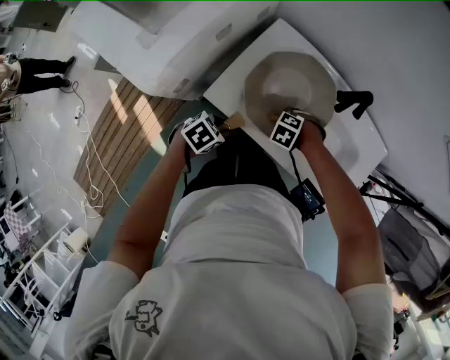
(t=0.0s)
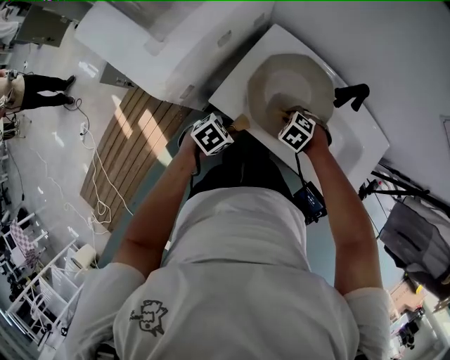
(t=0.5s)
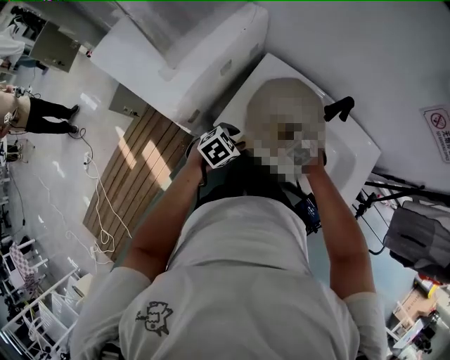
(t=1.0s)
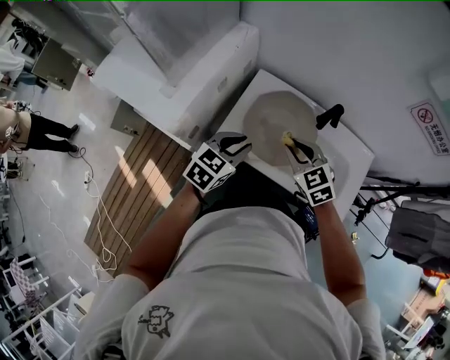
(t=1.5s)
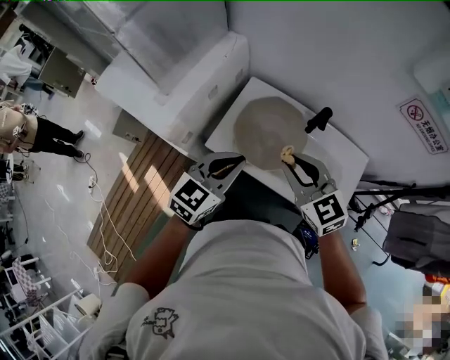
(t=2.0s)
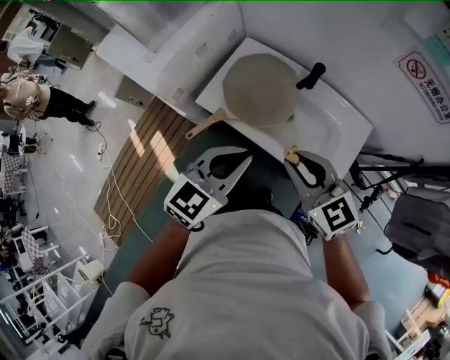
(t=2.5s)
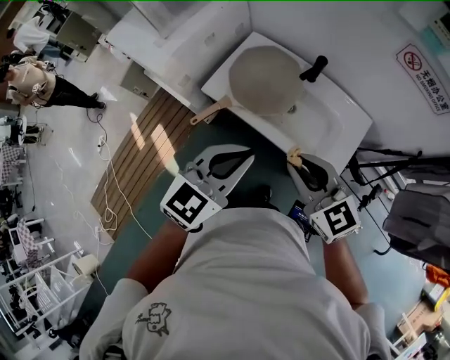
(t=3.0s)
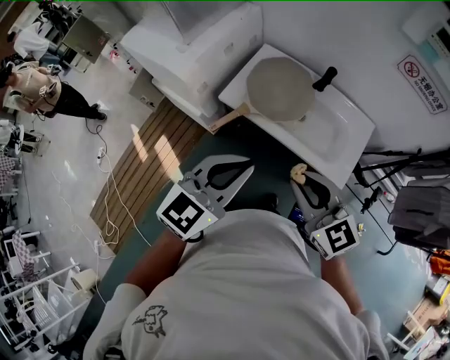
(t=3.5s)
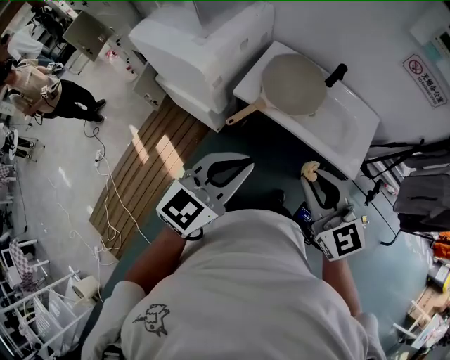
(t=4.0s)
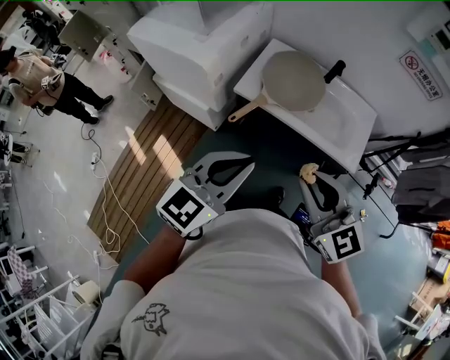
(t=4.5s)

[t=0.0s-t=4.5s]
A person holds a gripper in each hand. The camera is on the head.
t=0.0s to t=2.0s: Both grippers move upward, roughly 35 cm. The right gripper tilts its fingers approximately 70 degrees upward. The left gripper angles its fingers upward, by approximately 40 degrees, and closes up.
t=2.0s to t=4.5s: The grippers both shift backward by roughly 30 cm.

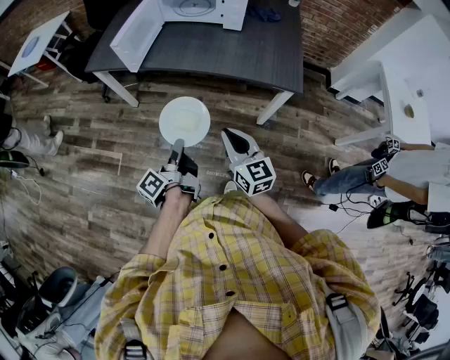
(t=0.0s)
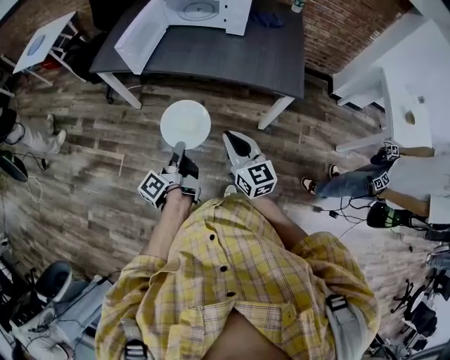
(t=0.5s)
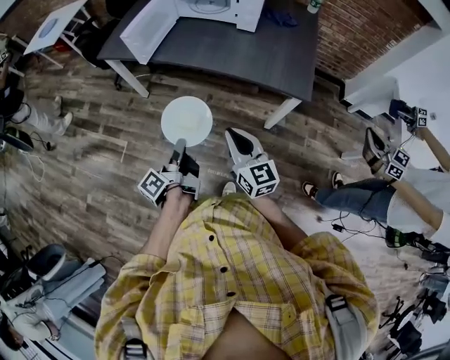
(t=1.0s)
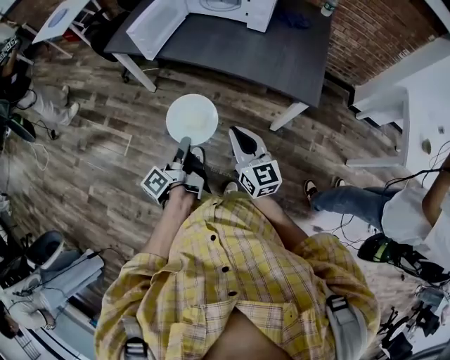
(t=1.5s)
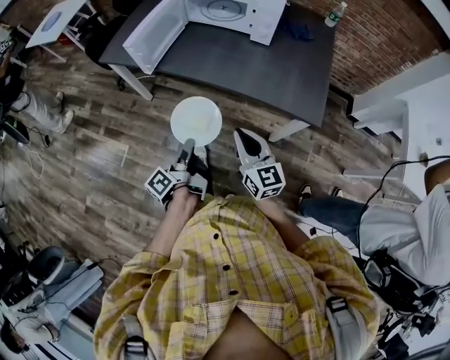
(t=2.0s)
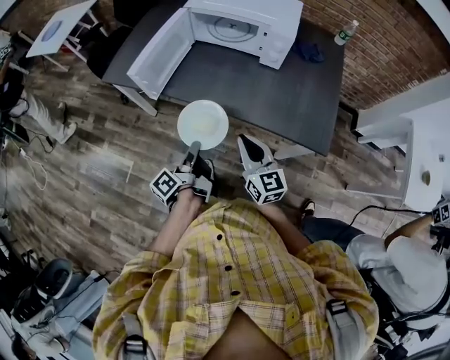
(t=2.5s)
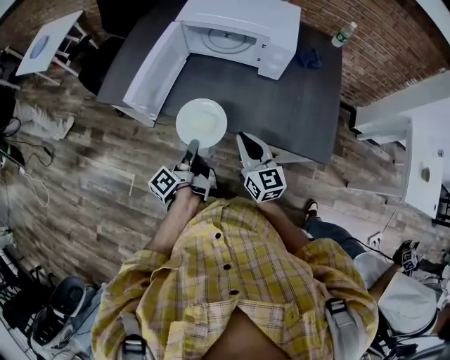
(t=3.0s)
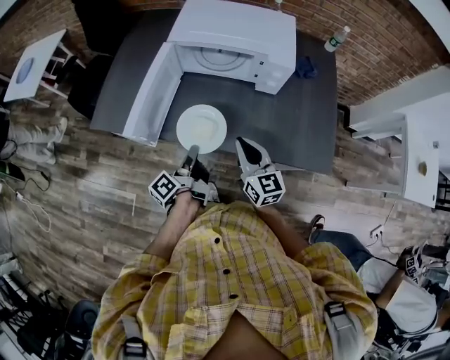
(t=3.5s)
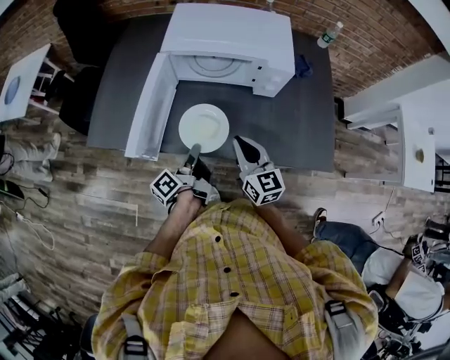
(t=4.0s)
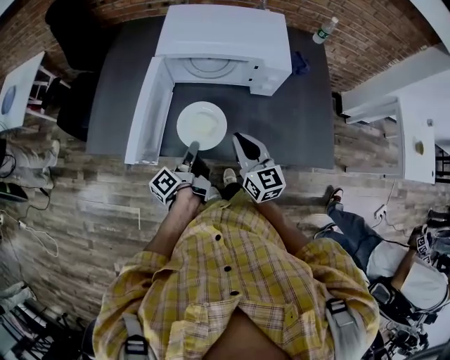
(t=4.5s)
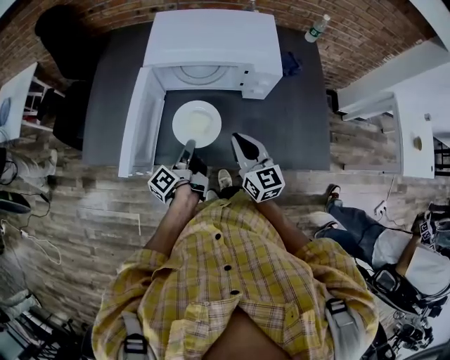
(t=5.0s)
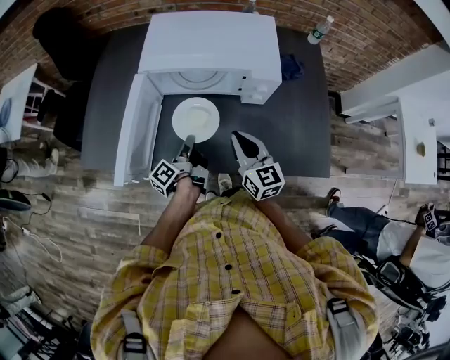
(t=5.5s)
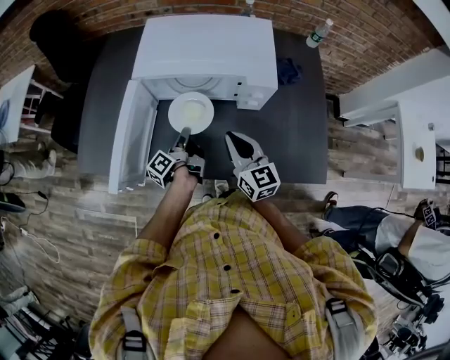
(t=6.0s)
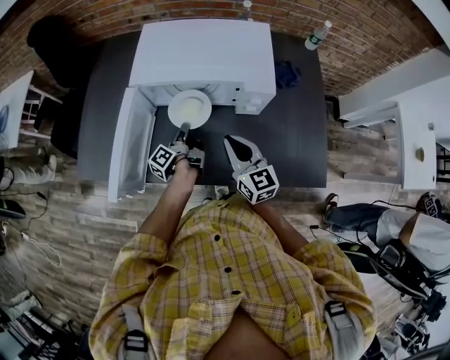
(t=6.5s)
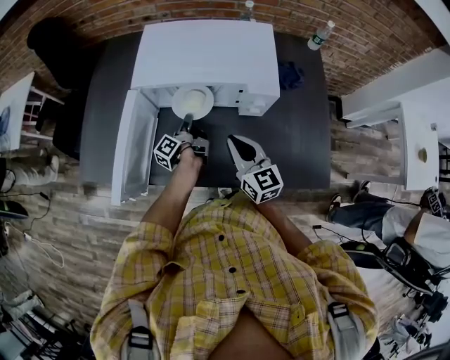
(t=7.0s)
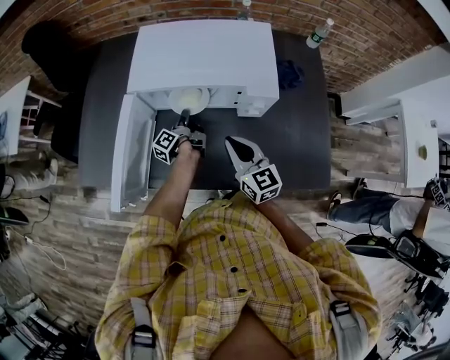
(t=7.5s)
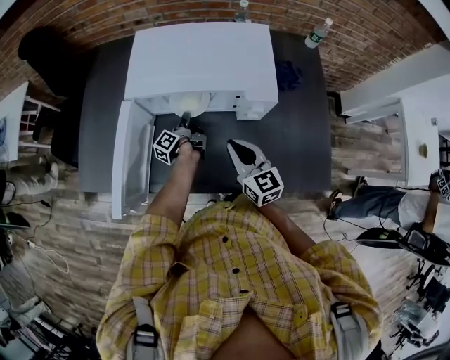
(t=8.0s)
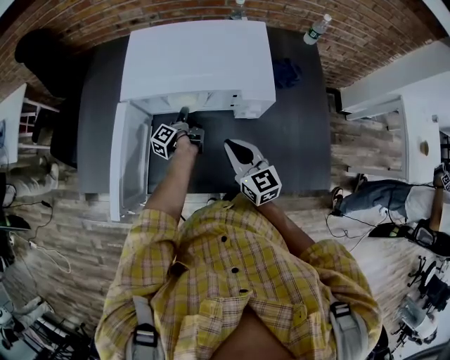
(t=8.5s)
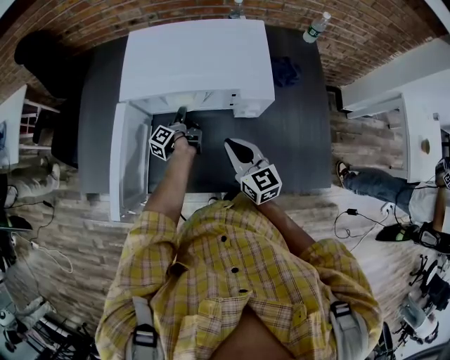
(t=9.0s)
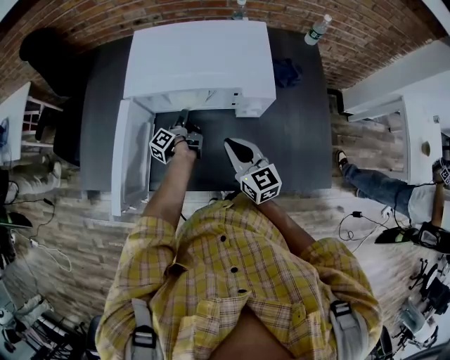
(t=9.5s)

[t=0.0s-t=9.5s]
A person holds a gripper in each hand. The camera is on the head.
t=0.0s to t=2.0s: The right gripper ends up some 10 cm from where it was.
t=2.0s to t=4.0s: The right gripper ends up about 35 cm from where it was.
t=4.0s to t=5.5s: The right gripper ends up some 10 cm from where it was.
t=5.5s to t=7.5s: The right gripper ends up about 5 cm from where it was.

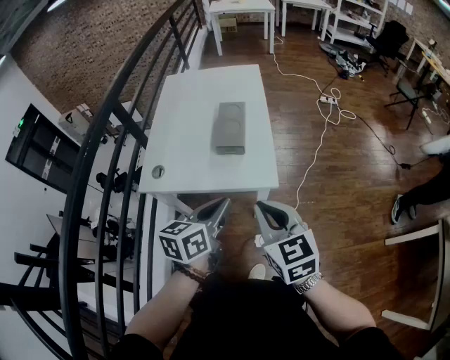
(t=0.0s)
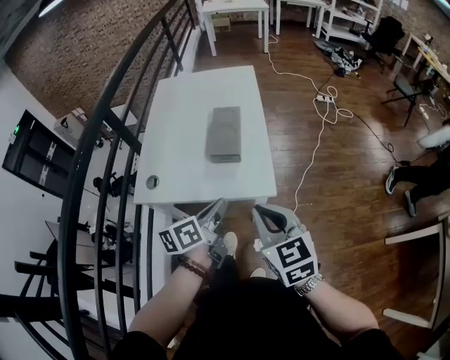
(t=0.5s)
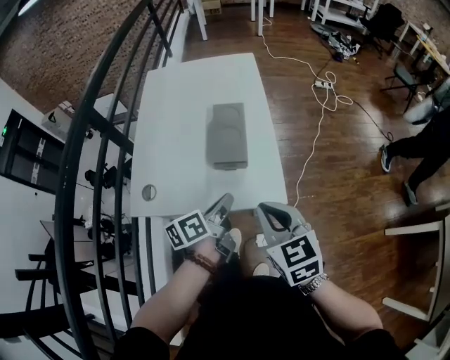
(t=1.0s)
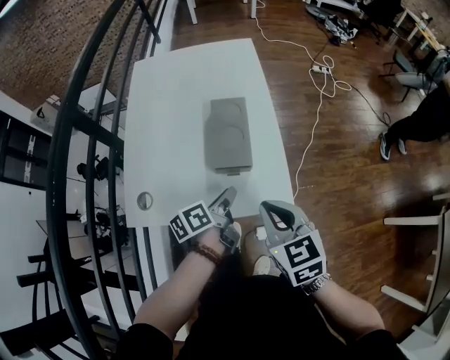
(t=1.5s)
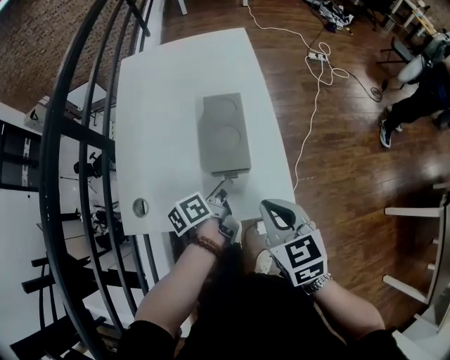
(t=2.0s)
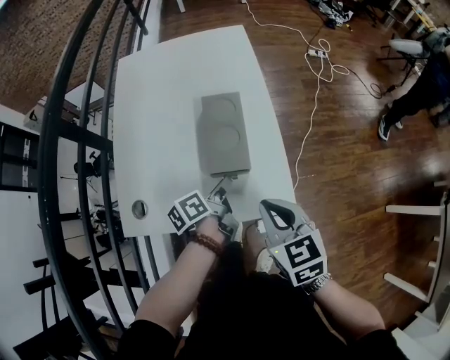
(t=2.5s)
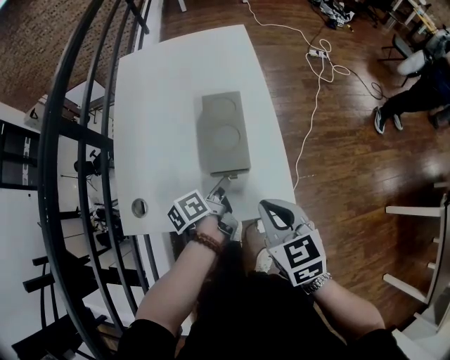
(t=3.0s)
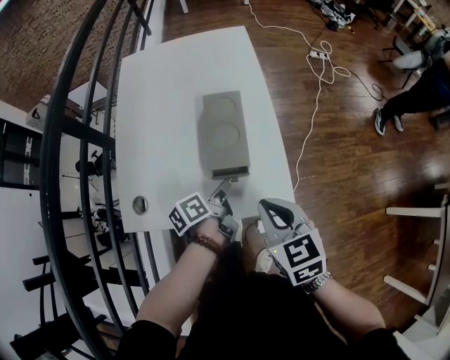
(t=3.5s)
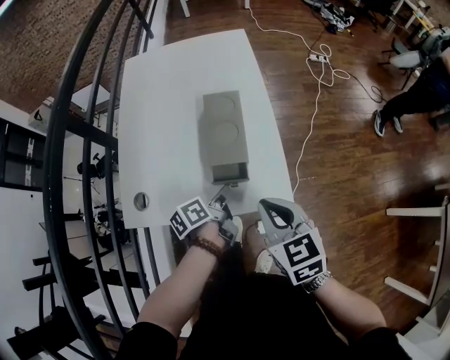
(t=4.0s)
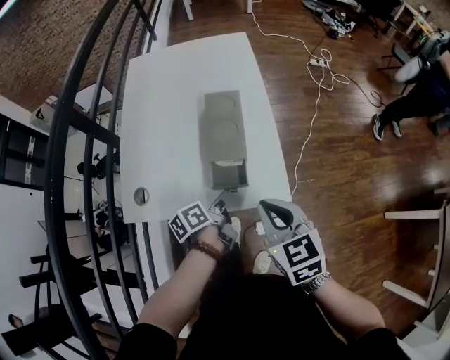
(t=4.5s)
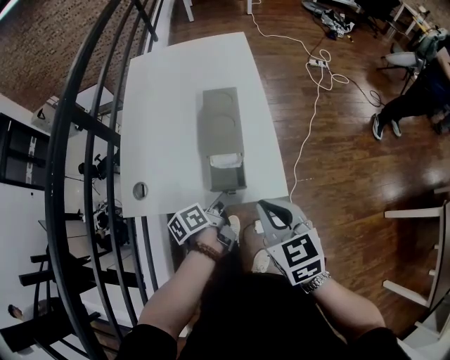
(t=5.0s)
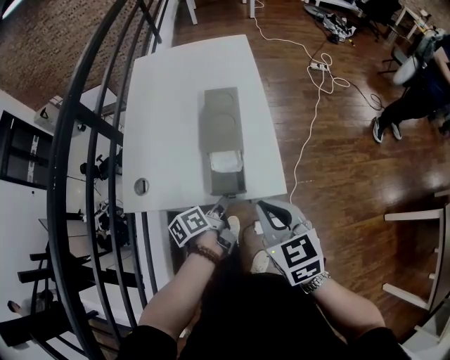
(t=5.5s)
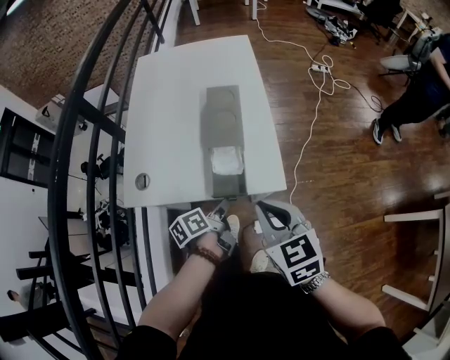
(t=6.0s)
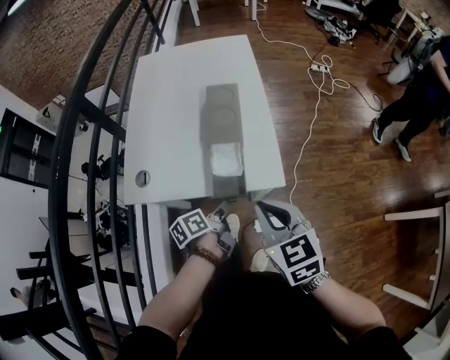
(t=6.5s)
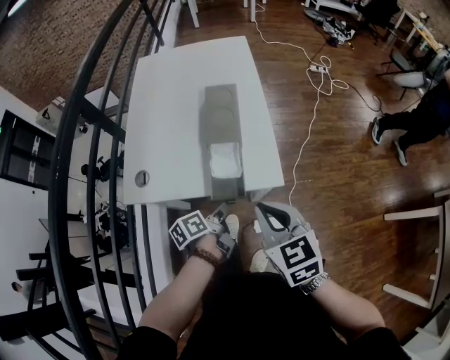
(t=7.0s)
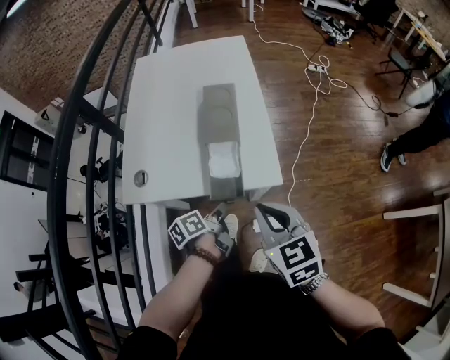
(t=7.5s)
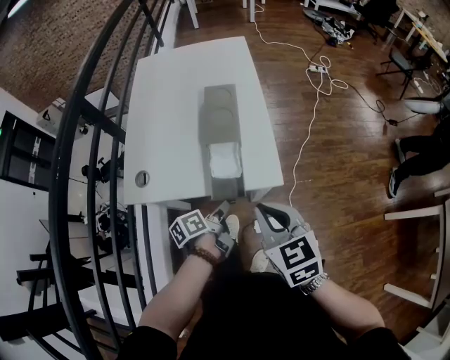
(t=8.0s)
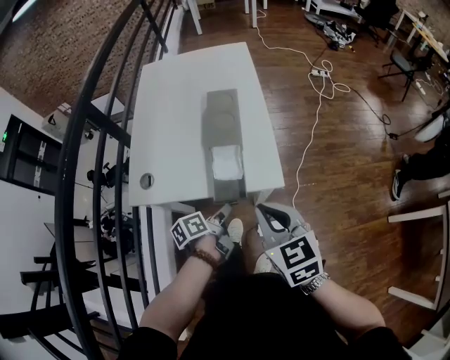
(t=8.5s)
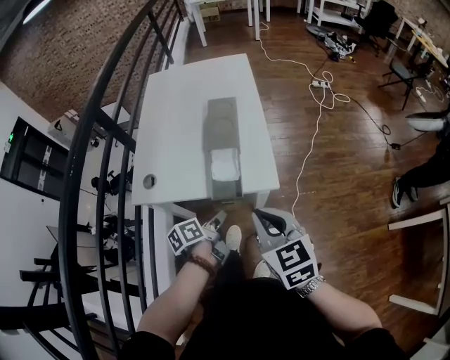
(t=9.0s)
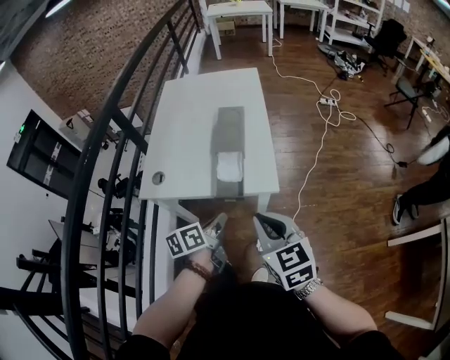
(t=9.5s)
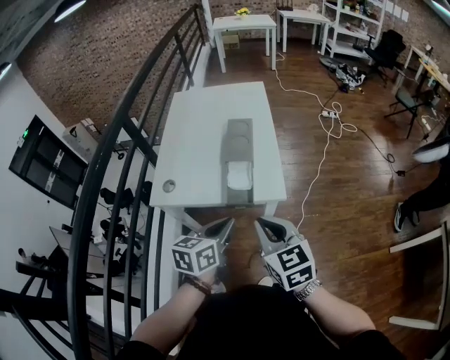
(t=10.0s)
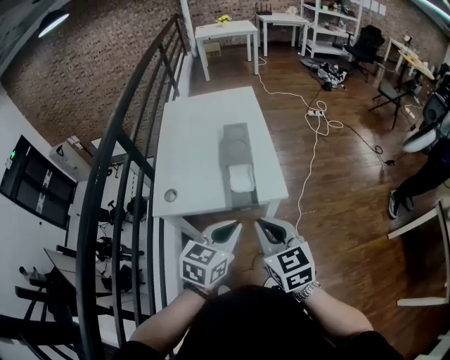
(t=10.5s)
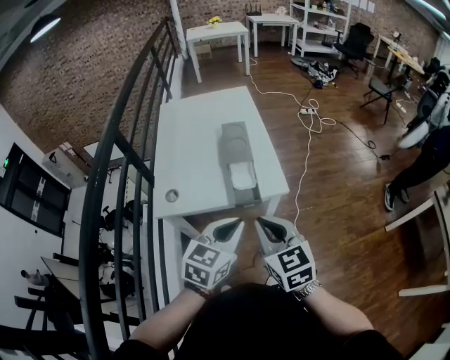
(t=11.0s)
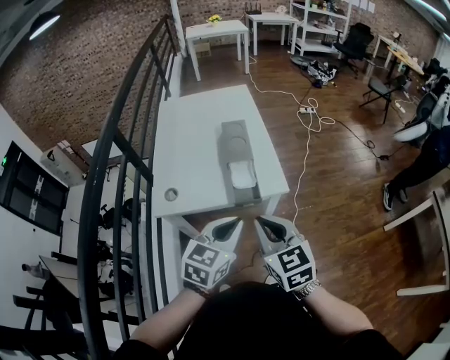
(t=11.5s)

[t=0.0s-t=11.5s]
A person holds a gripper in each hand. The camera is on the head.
t=0.0s to t=2.0s: The right gripper is displaced forward and downward by about 15 cm. The left gripper travels forward and downward by roughly 25 cm, rolls counterclockwise, seen from behind, by approximately 40 degrees, and opens.
t=2.0s to t=4.0s: There are only small adjustments of the grippers.
t=4.0s to t=6.0s: The two grippers go about 5 cm backward.
t=6.0s to t=7.5s: There are only small adjustments of the grippers.
t=7.5s to t=9.5s: The right gripper goes approximately 5 cm backward. Meanwhile the left gripper moves upward and backward, about 10 cm, and opens and closes again.
t=9.5s to t=11.5s: The right gripper heads to the left, covering roughly 10 cm. The left gripper travels upward by some 10 cm, and twists approximately 60 degrees clockwise, seen from behind.

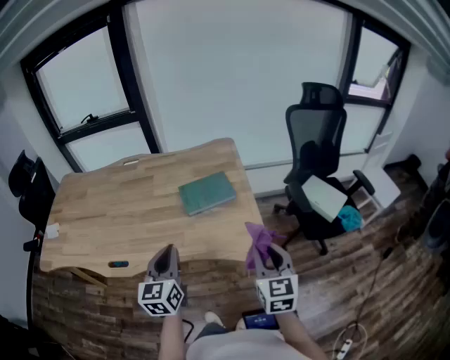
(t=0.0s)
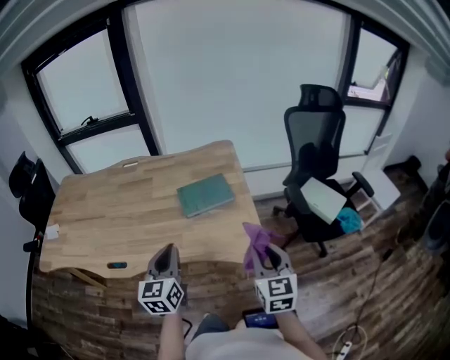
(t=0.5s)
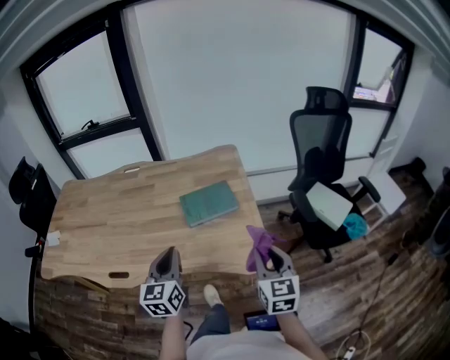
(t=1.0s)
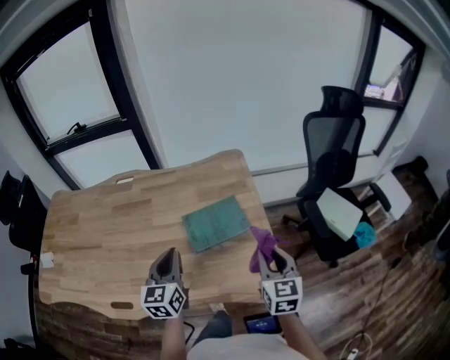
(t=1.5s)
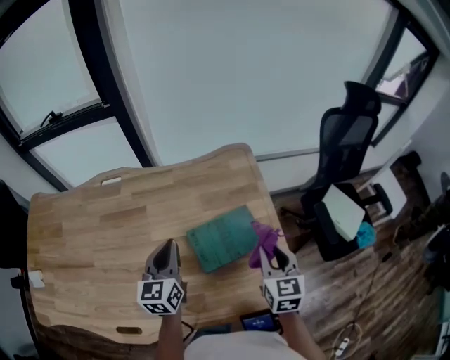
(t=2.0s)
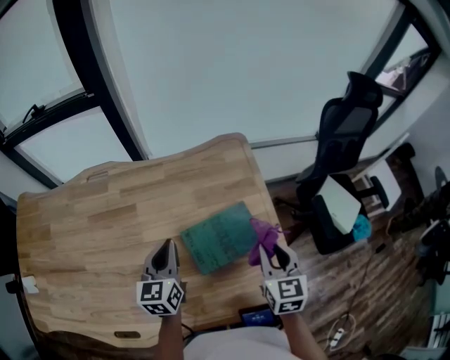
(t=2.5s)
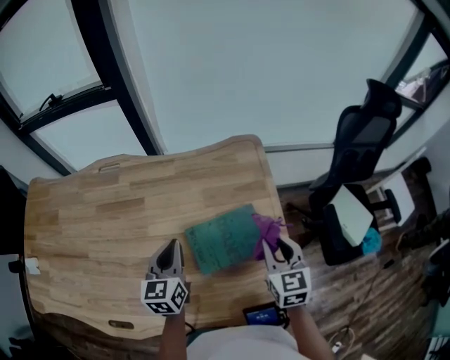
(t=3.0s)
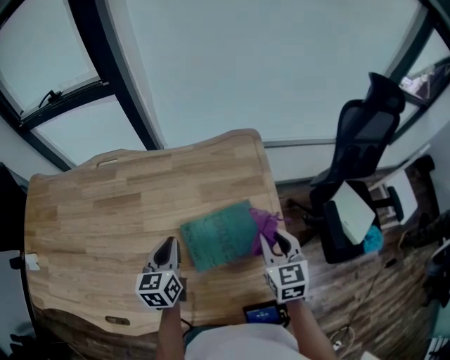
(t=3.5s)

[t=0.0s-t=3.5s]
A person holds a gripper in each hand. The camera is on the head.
t=0.0s to t=2.0s: Both grippers travel together forward, some 30 cm.
t=2.0s to t=3.5s: The left gripper goes approximately 10 cm downward; the right gripper shifts some 5 cm forward.
